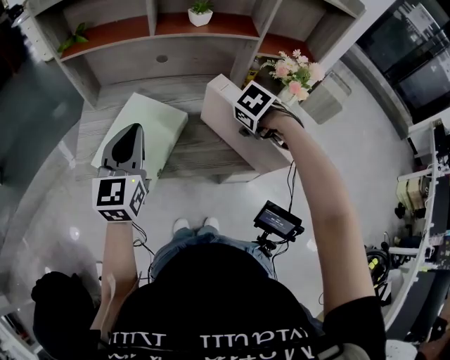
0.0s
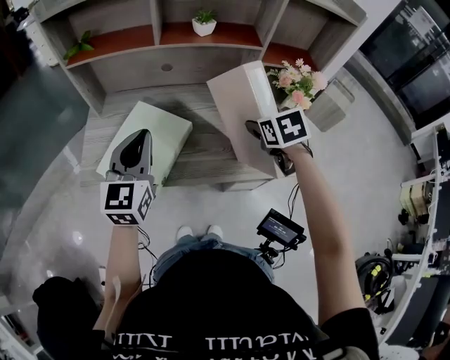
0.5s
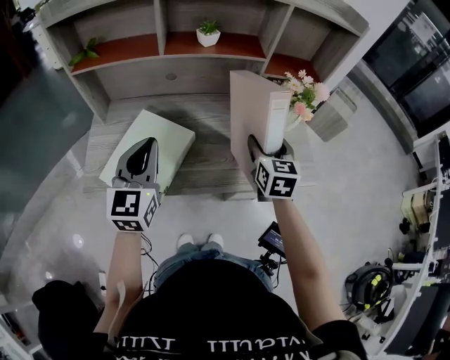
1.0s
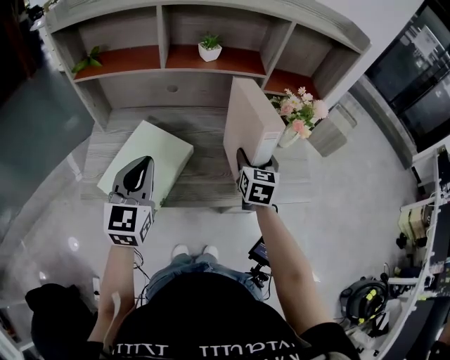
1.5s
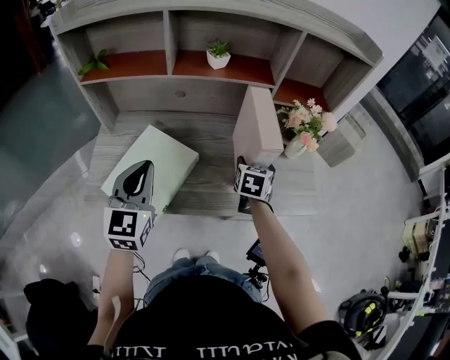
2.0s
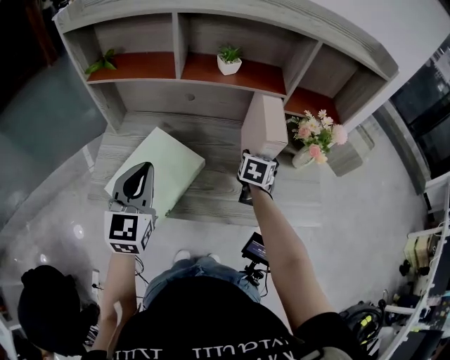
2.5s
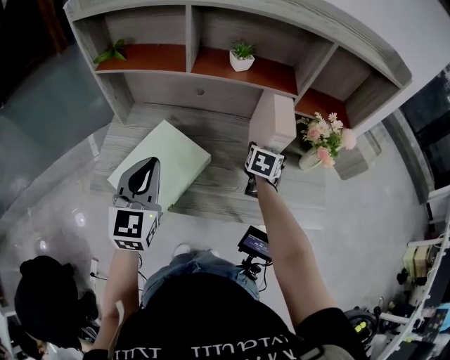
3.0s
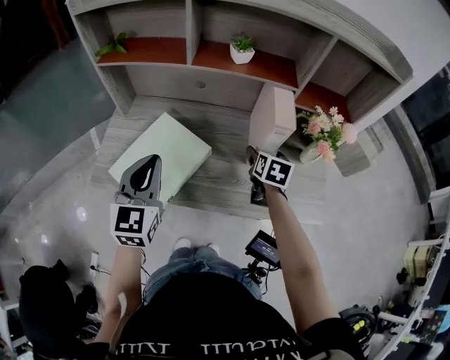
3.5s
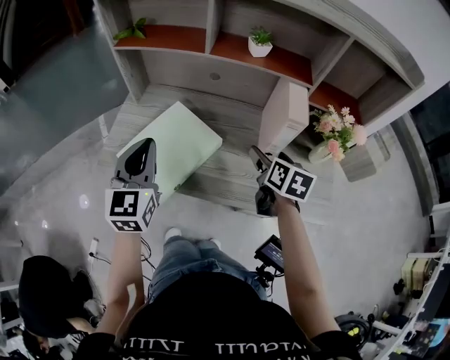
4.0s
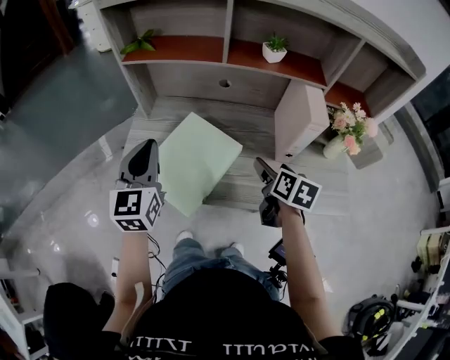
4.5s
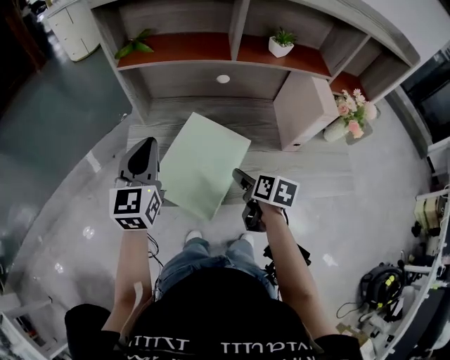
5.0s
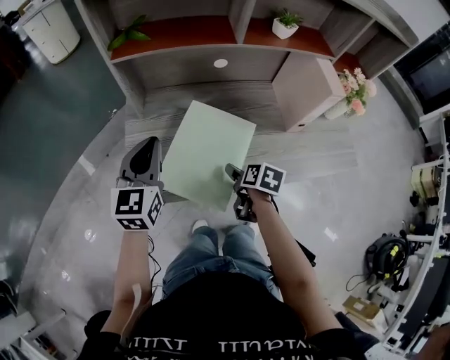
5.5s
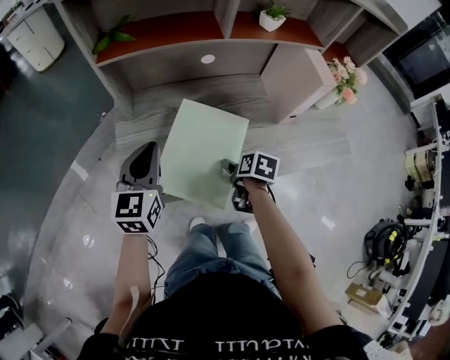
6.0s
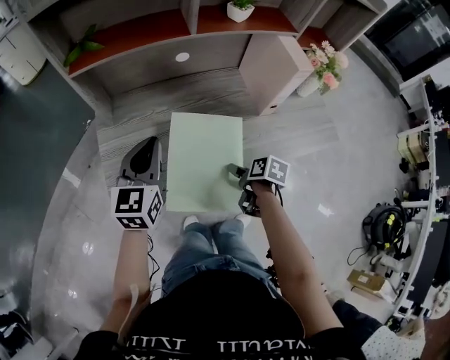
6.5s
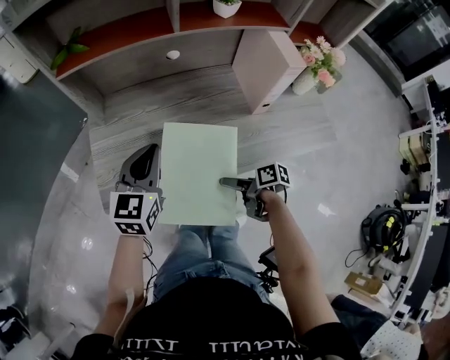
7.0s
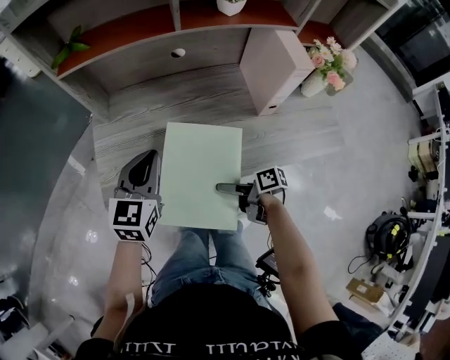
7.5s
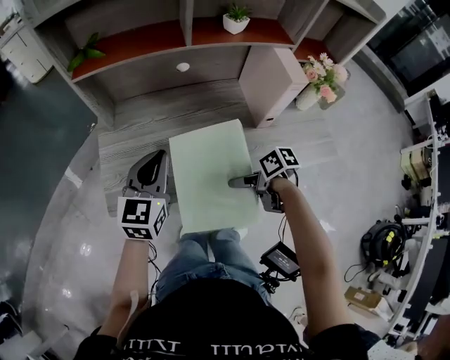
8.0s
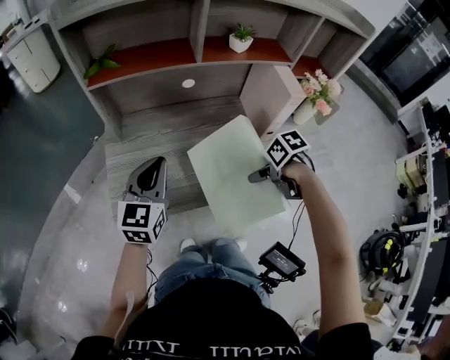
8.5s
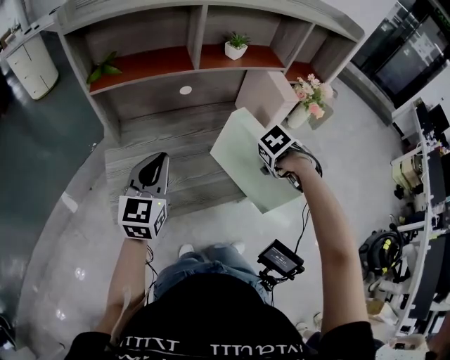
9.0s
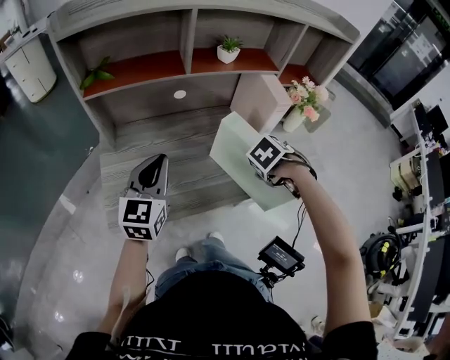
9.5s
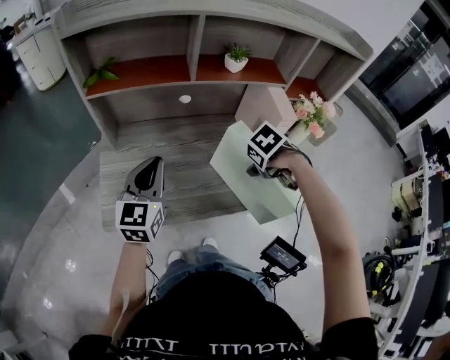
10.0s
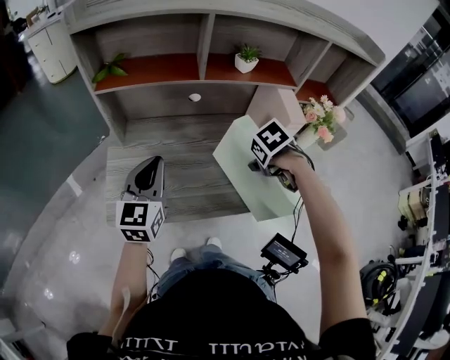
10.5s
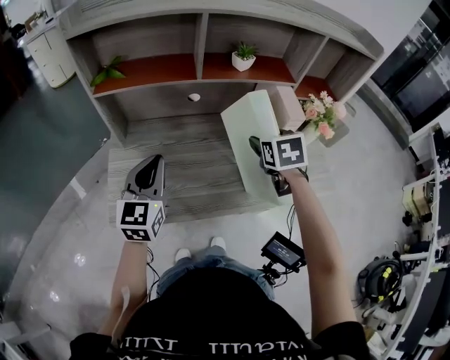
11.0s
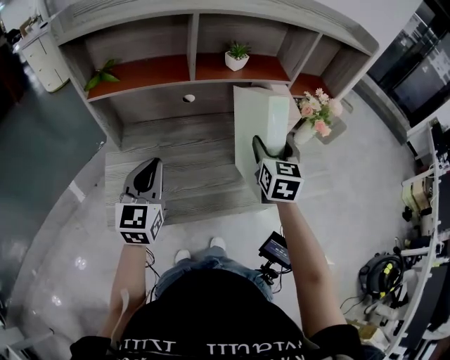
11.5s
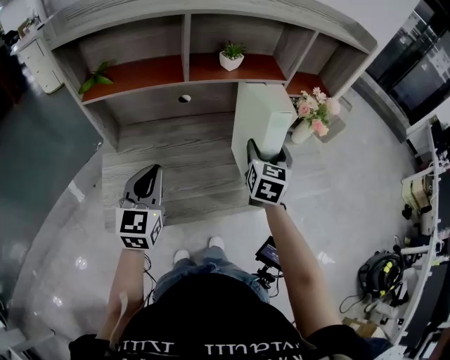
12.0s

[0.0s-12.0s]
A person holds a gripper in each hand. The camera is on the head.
0.0s to 2.0s: The right gripper reaches about 5 cm upward, then returns, and angles its fingers upward, by approximately 40 degrees.
2.0s to 4.0s: The right gripper heads upward, covering some 5 cm, goes forward and returns, about 10 cm each way, and swivels about 30 degrees.
4.0s to 6.0s: The right gripper heads to the left and downward, covering about 25 cm, and swivels some 40 degrees. The left gripper moves to the left, forward and downward, roughly 20 cm, and changes its angle by roughly 30 degrees.
6.0s to 8.0s: The right gripper moves some 10 cm, and turns by approximately 40 degrees. Meanwhile the left gripper ends up about 10 cm from where it was.
8.0s to 10.0s: The right gripper shifts by some 20 cm, and tips its fingers downward by some 40 degrees; the left gripper changes place by some 5 cm.
10.0s to 12.0s: The right gripper goes approximately 5 cm upward, and tilts its fingers about 60 degrees upward.

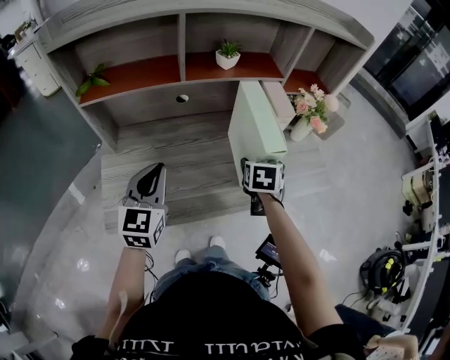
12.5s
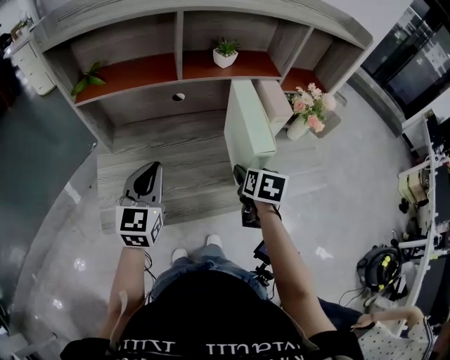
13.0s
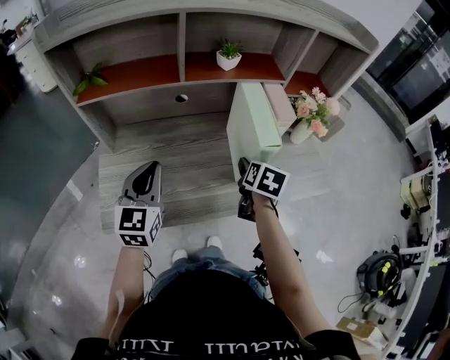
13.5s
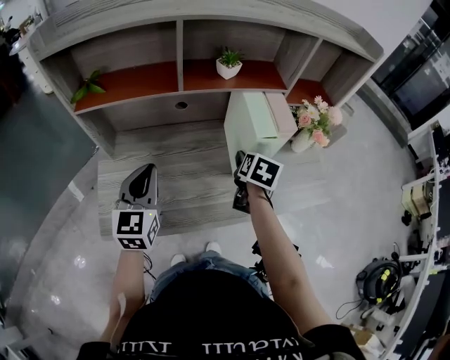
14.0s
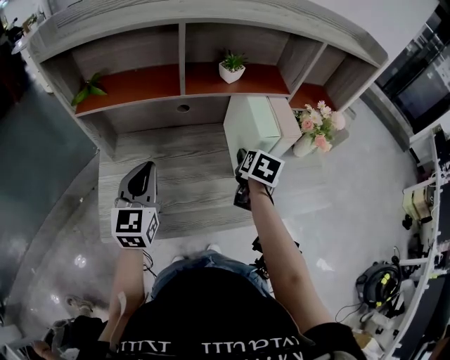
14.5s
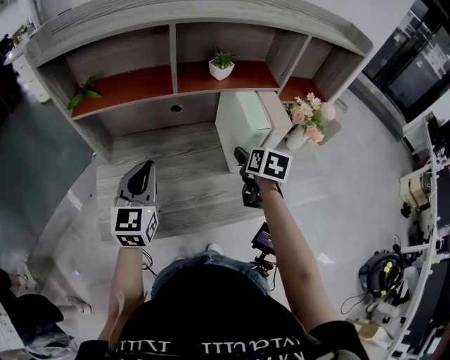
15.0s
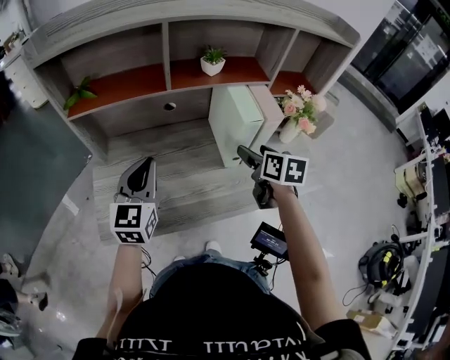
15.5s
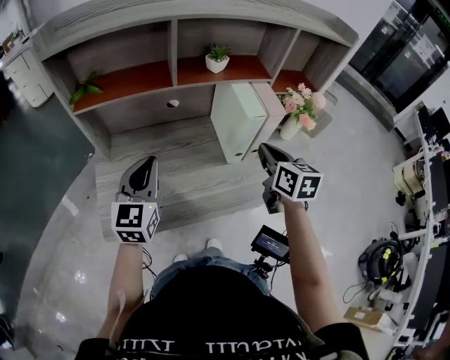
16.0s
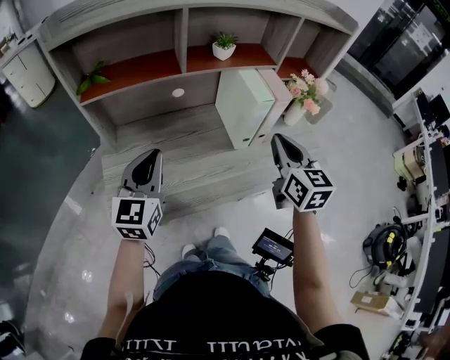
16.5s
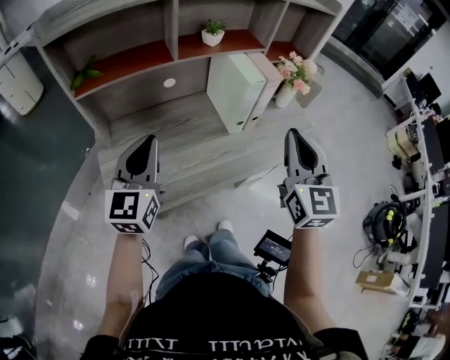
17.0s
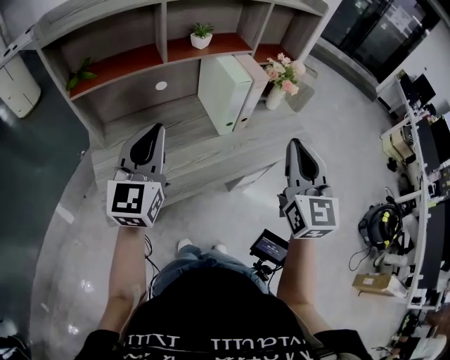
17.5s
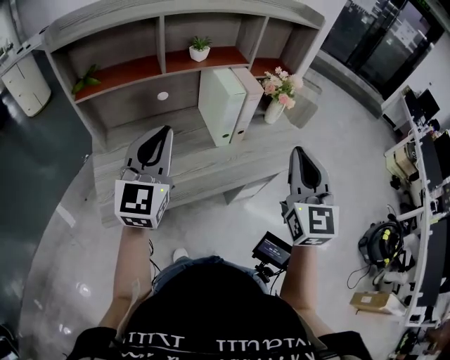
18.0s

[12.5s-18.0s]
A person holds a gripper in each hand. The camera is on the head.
12.5s to 14.5s: The right gripper moves forward, approximately 10 cm, and turns by approximately 20 degrees, while the left gripper moves approximately 5 cm.
14.5s to 16.0s: The right gripper travels upward and backward by approximately 15 cm, changes its angle by some 30 degrees, and closes up.
16.0s to 18.0s: The left gripper shifts about 15 cm upward, to the right and backward, while the right gripper travels backward and upward by some 25 cm, and swivels about 40 degrees.

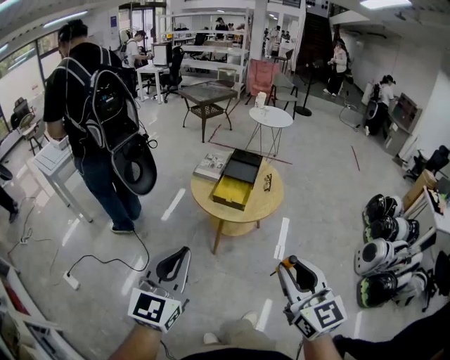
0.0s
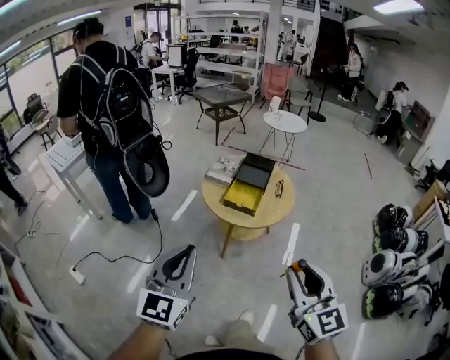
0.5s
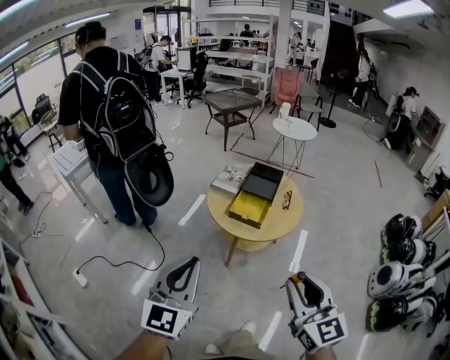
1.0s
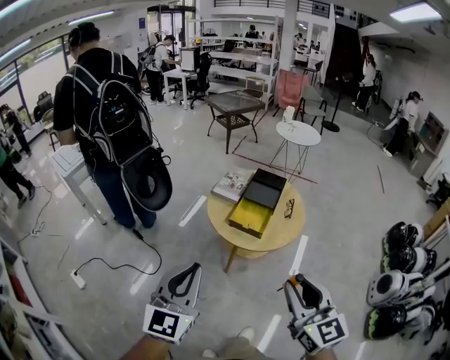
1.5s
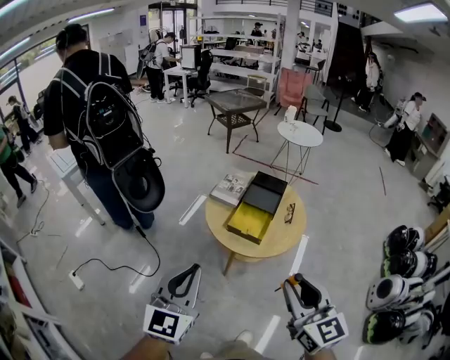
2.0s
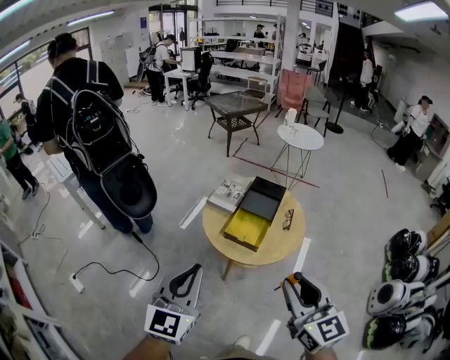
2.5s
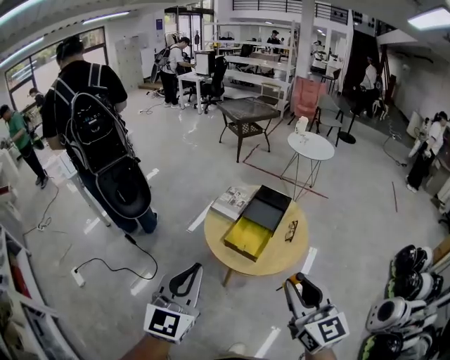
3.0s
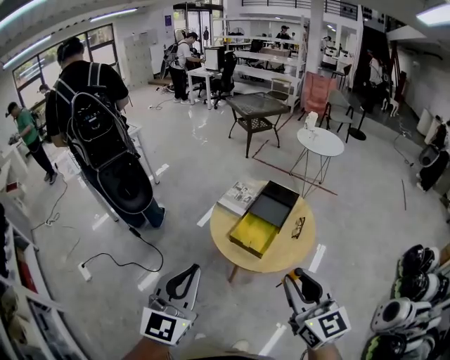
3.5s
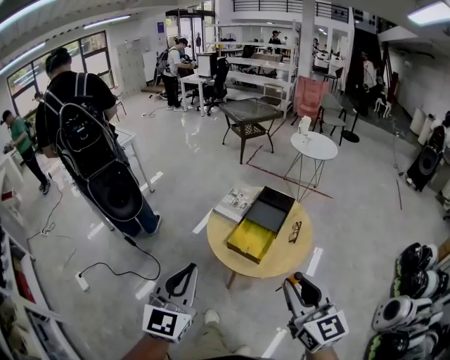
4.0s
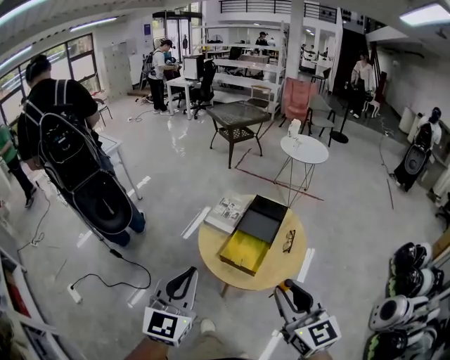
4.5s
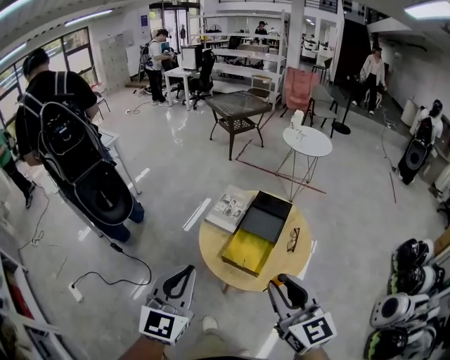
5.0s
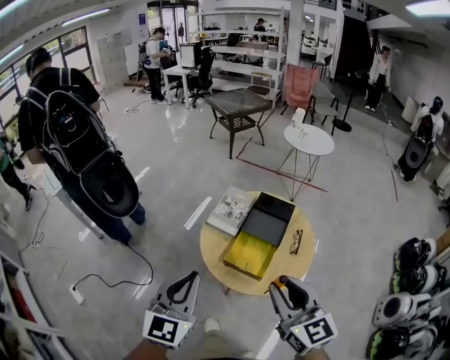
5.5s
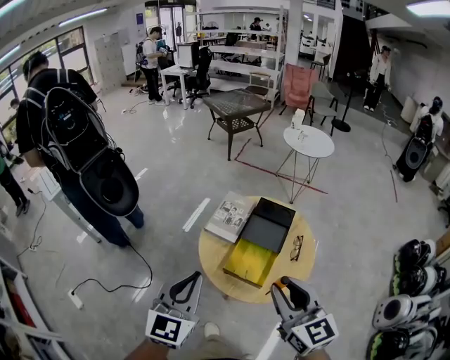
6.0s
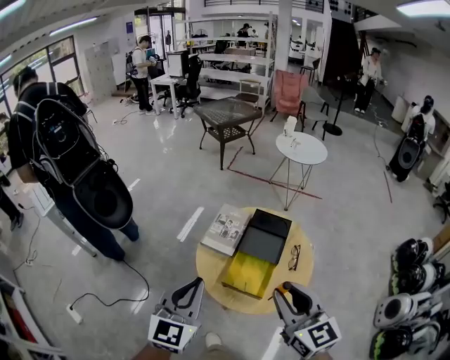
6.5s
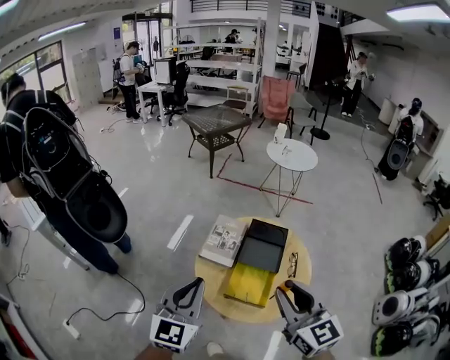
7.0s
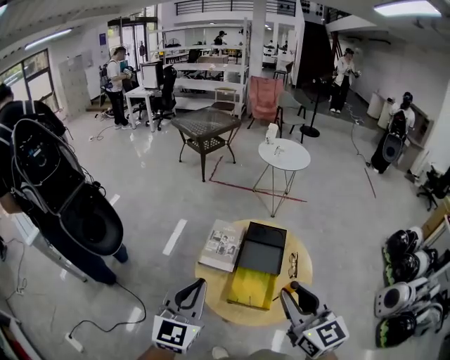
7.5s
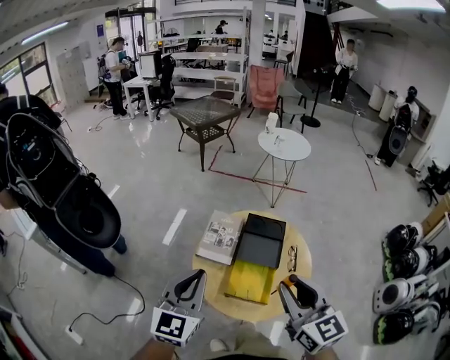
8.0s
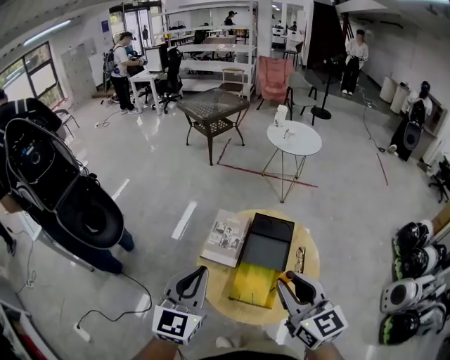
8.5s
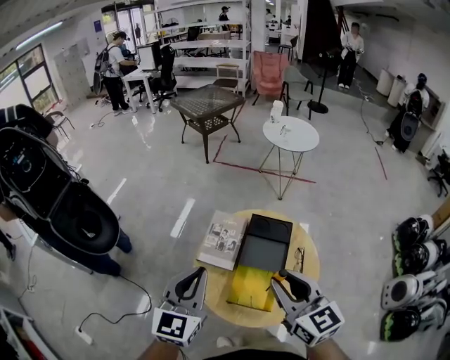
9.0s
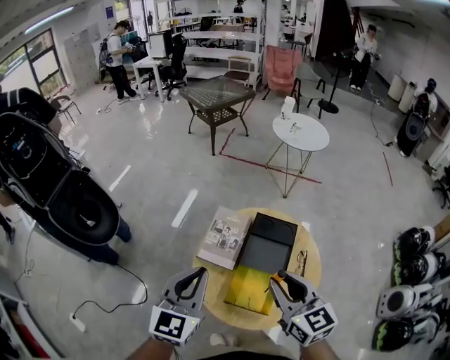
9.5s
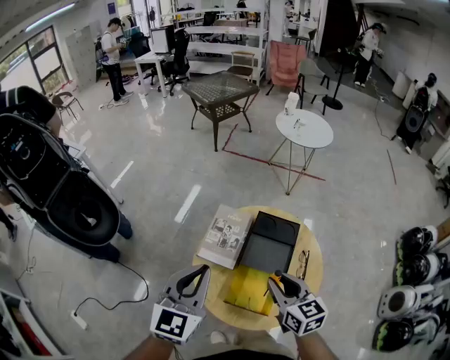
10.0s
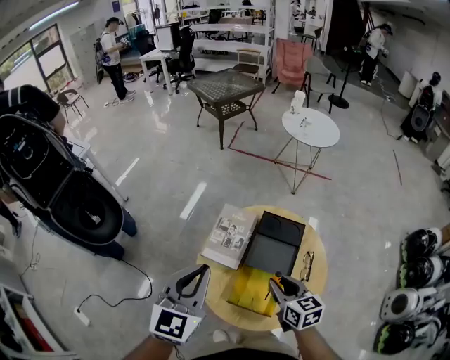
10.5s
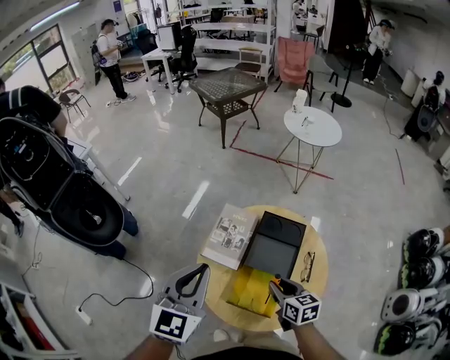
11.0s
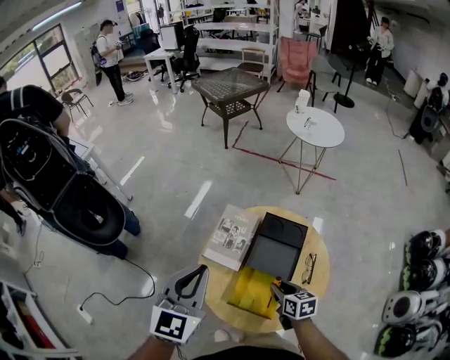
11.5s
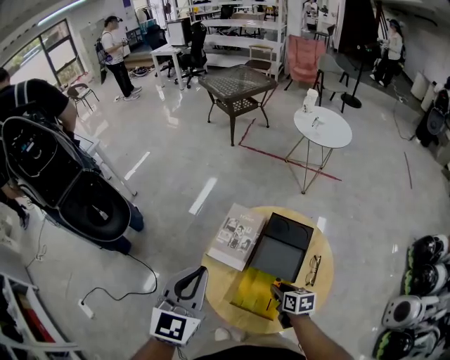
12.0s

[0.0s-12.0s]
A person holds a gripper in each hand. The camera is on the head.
0.0s to 2.0s: Both grippers move forward, roughly 15 cm.
2.0s to 4.0s: The left gripper moves forward, approximately 5 cm; the right gripper heads forward and to the right, covering approximately 10 cm.
4.0s to 6.0s: The grippers both shift forward by roughly 20 cm.
6.0s to 8.0s: The right gripper goes approximately 10 cm forward. Meanwhile the left gripper shifts some 10 cm forward.
8.0s to 10.0s: The left gripper heads forward, covering roughly 10 cm; the right gripper heads downward and forward, covering some 20 cm.
10.0s to 12.0s: The right gripper moves downward, some 20 cm, and changes its angle by about 30 degrees.
